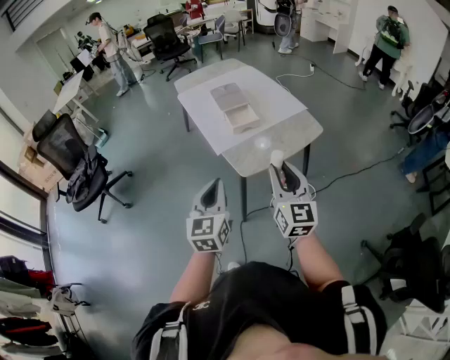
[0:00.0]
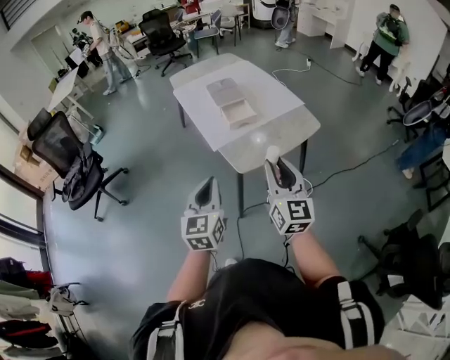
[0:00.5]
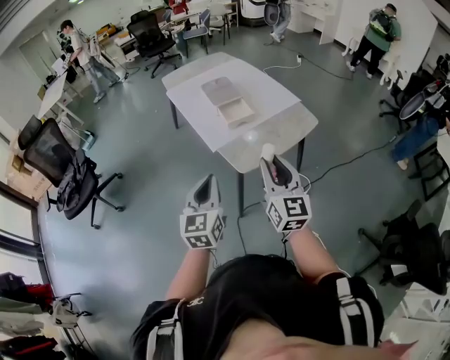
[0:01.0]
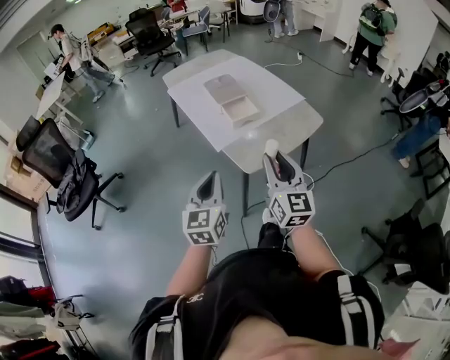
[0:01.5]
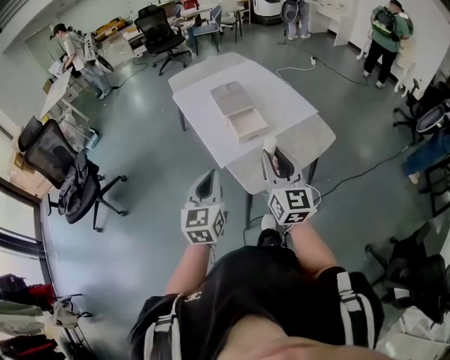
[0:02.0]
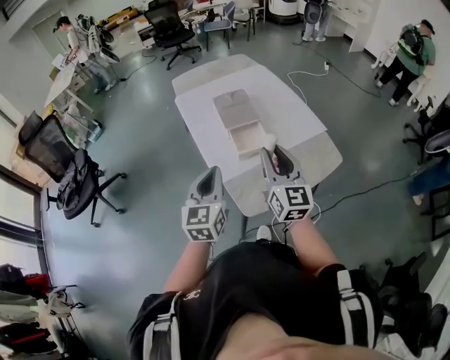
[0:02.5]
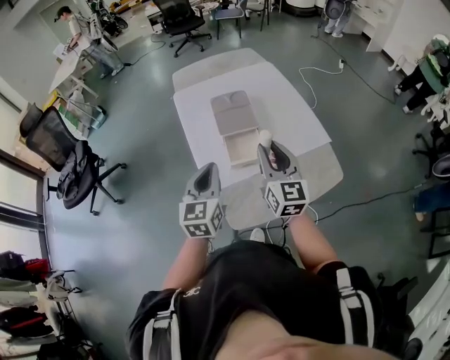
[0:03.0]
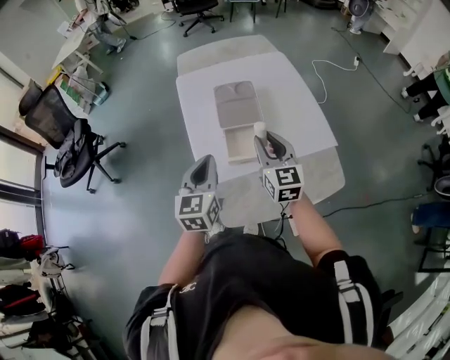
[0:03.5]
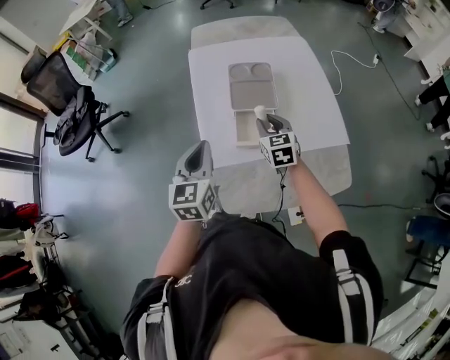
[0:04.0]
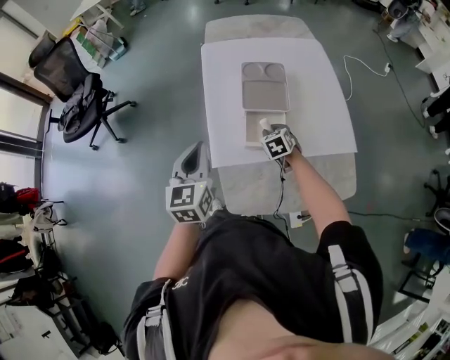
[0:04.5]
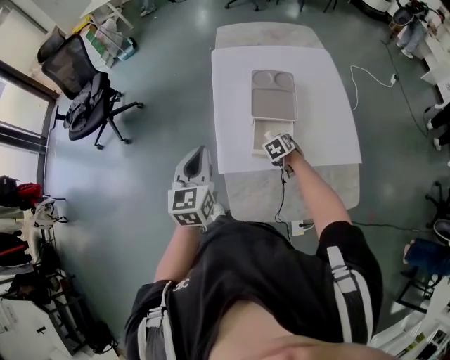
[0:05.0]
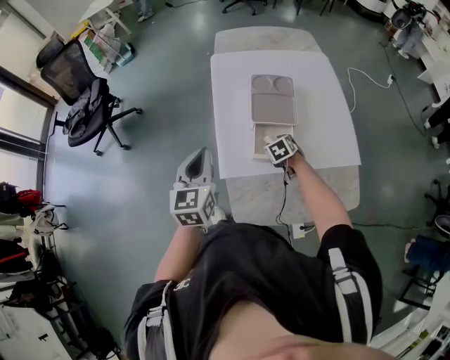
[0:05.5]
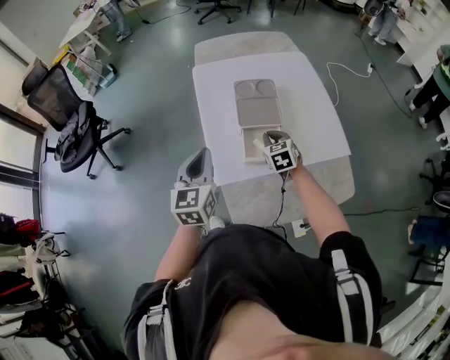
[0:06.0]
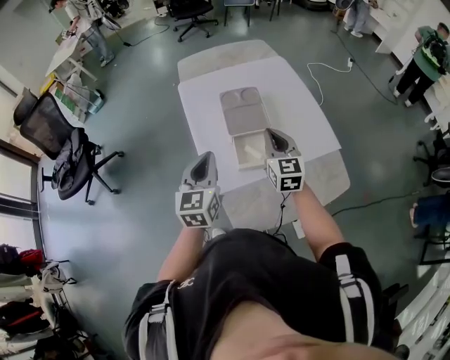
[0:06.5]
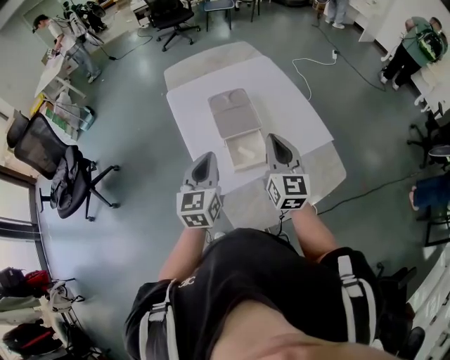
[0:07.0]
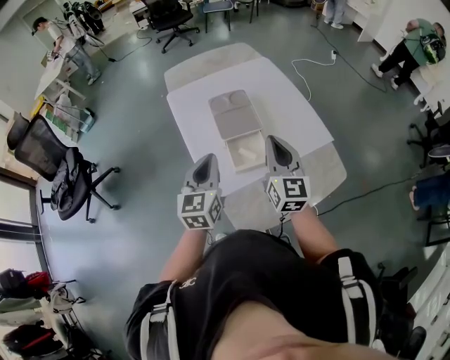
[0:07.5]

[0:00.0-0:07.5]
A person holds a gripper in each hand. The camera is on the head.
0:00.0 to 0:02.0: The two grippers go about 15 cm forward.
0:02.0 to 0:04.0: The right gripper shifts roughly 40 cm forward and downward, and tilts its fingers roughly 40 degrees downward; the left gripper is displaced forward by some 25 cm, and swivels approximately 20 degrees.
0:04.0 to 0:05.5: The right gripper is displaced downward by some 15 cm, and changes its angle by approximately 30 degrees, while the left gripper is displaced to the left by roughly 5 cm.
0:05.5 to 0:07.5: The right gripper heads upward, covering approximately 30 cm, angles its fingers upward, by approximately 60 degrees, and closes its fingers, while the left gripper is displaced to the right by about 10 cm, and rotates roughly 20 degrees.

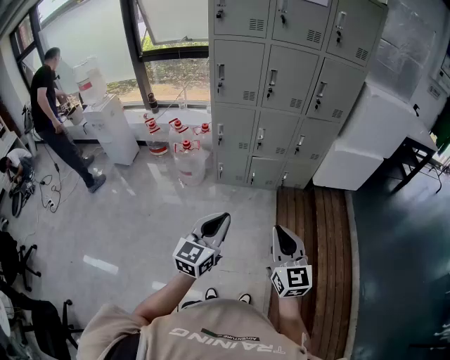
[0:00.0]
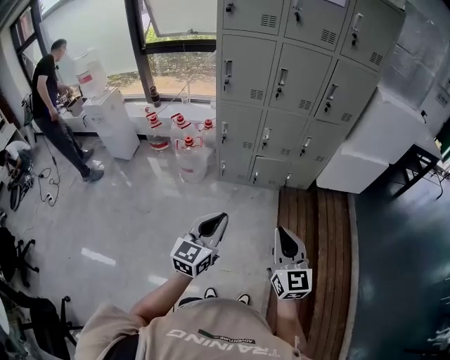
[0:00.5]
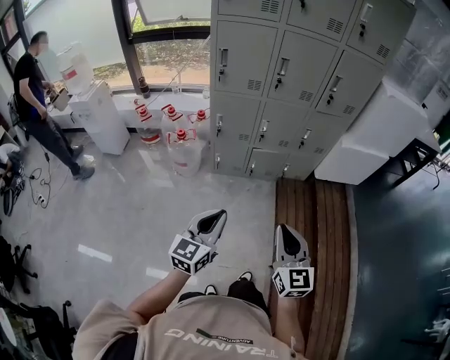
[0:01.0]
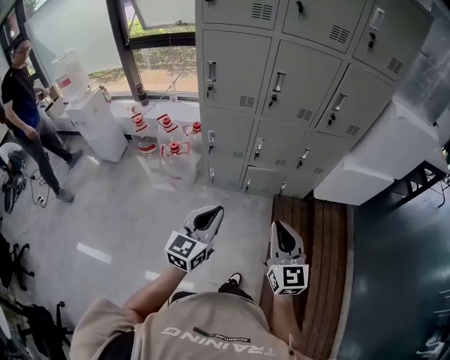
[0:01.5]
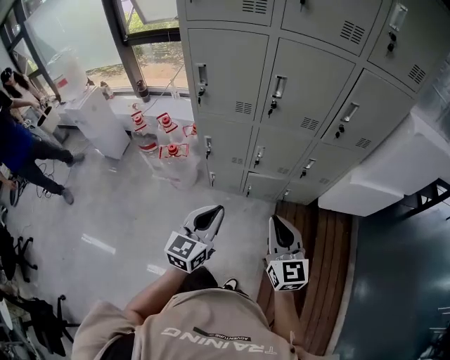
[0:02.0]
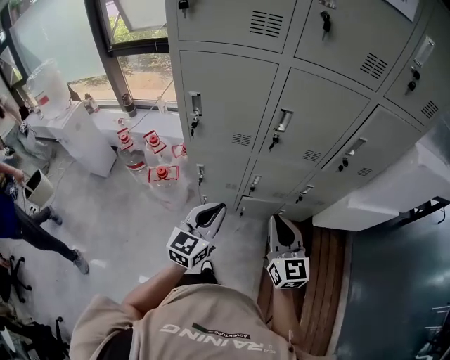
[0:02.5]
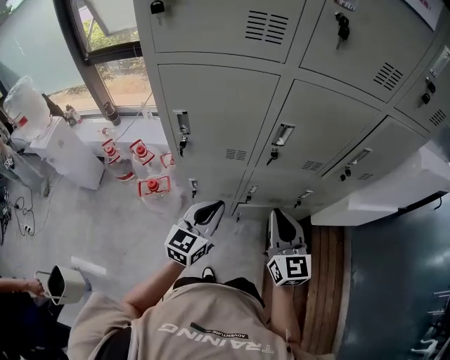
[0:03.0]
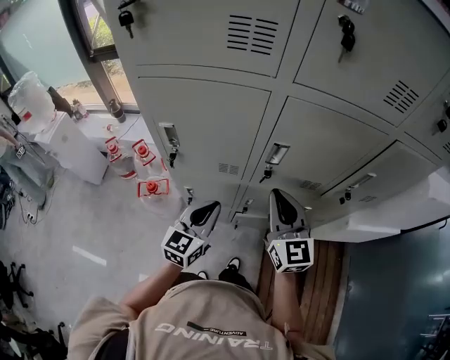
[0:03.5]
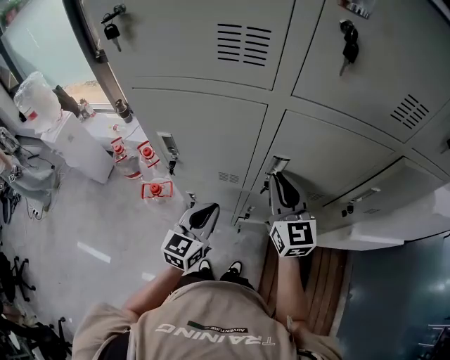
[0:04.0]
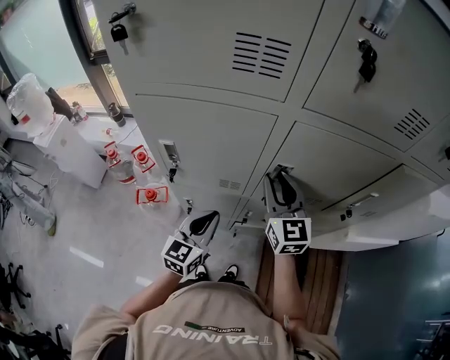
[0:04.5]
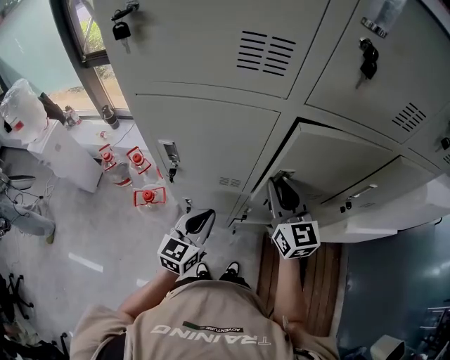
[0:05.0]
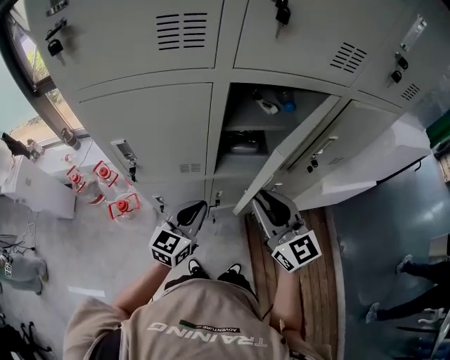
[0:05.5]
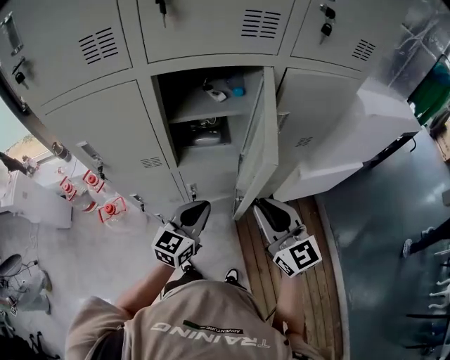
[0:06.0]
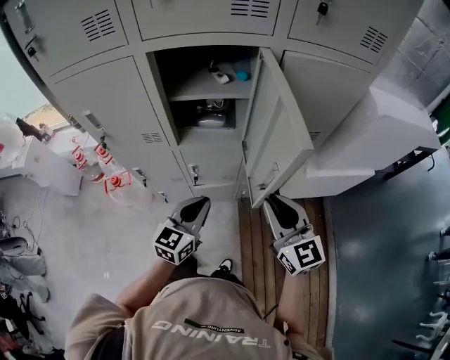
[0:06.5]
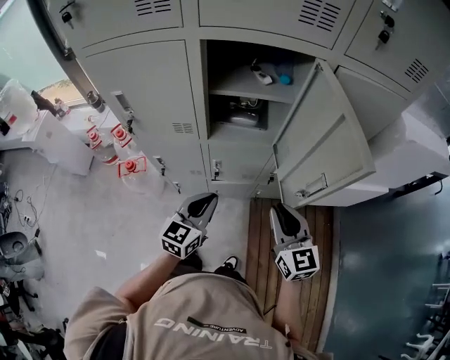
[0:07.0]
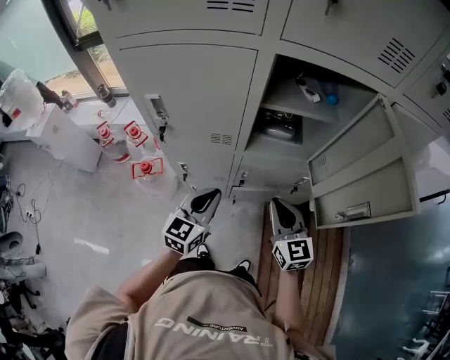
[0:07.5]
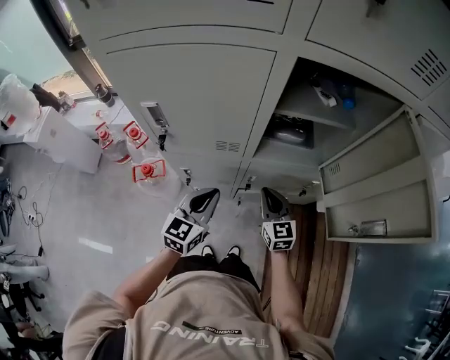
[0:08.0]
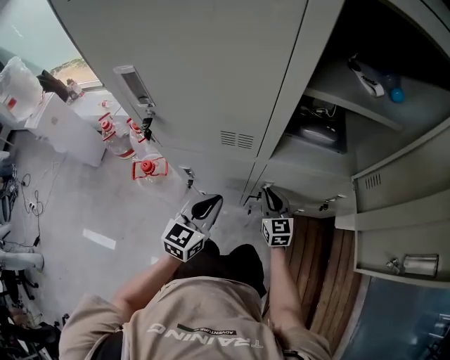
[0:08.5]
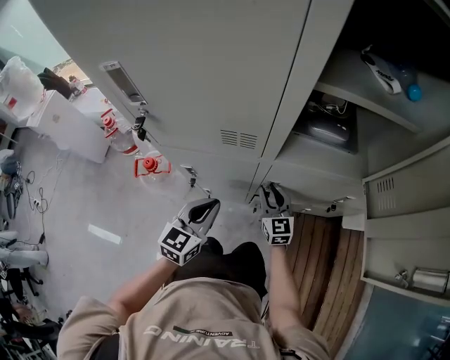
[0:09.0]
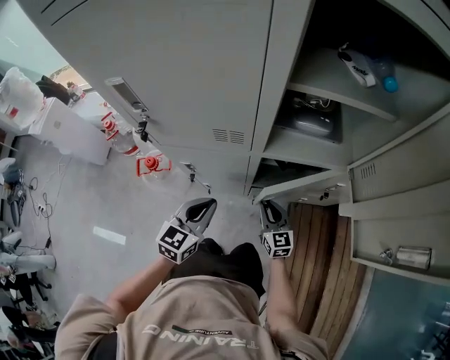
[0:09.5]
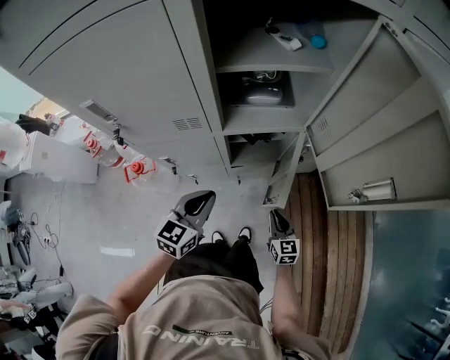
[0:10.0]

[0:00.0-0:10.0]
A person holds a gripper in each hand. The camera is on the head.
0:00.0 to 0:02.0: The two grippers go some 35 cm forward.
0:02.0 to 0:04.0: Both grippers move forward, some 35 cm.
0:04.0 to 0:06.0: The left gripper goes roughly 20 cm to the right, and changes its angle by some 20 degrees; the right gripper heads backward and to the right, covering roughly 25 cm.
0:06.0 to 0:08.0: The right gripper goes about 30 cm downward, to the left and forward. Meanwhile the left gripper goes some 20 cm to the left and downward.
0:08.0 to 0:10.0: The left gripper is displaced to the right and downward by roughly 10 cm. Meanwhile the right gripper goes approximately 25 cm downward, backward and to the right.

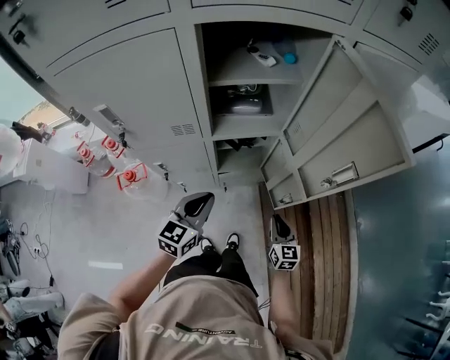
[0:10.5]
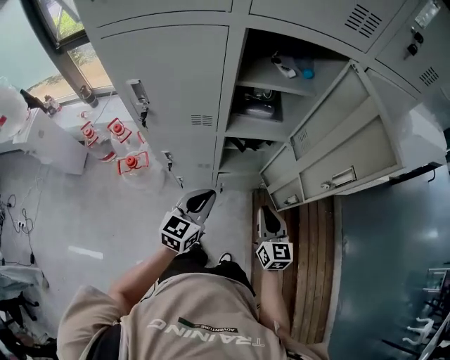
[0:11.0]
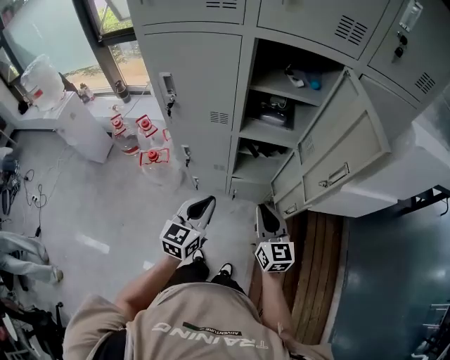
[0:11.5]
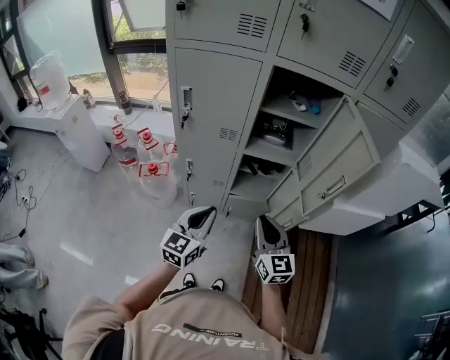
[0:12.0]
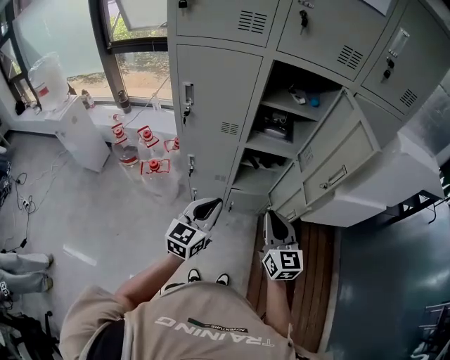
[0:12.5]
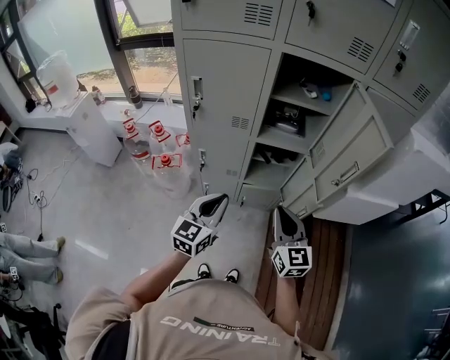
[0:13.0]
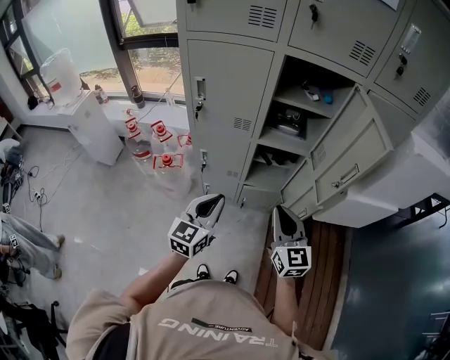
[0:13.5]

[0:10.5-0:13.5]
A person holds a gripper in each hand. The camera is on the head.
0:10.5 to 0:12.0: The left gripper moves backward and upward, roughly 15 cm, and rotates about 20 degrees. Meanwhile the right gripper goes roughly 25 cm upward and to the left, and swivels approximately 30 degrees.
0:12.0 to 0:13.5: The grippers make only small movements.

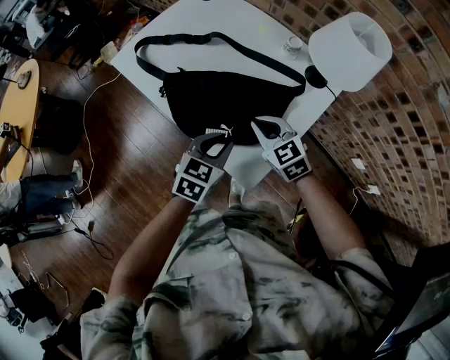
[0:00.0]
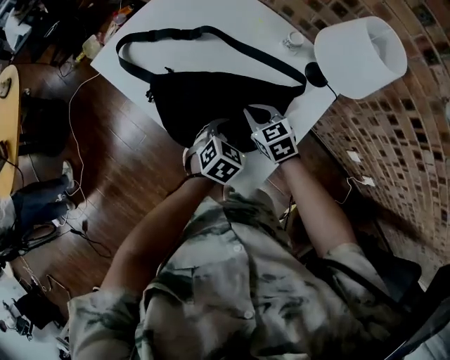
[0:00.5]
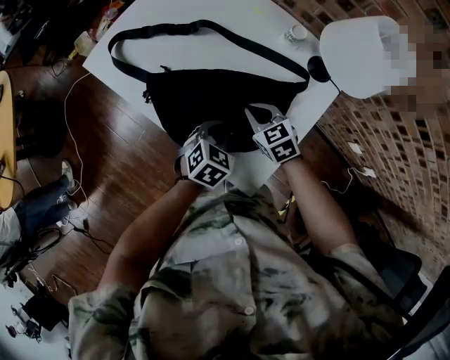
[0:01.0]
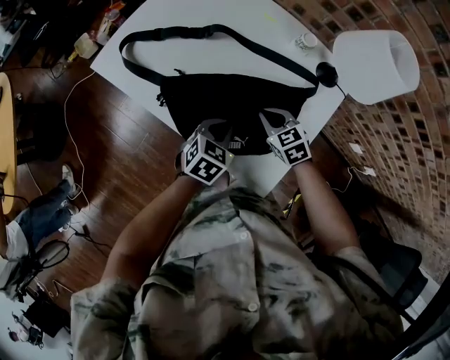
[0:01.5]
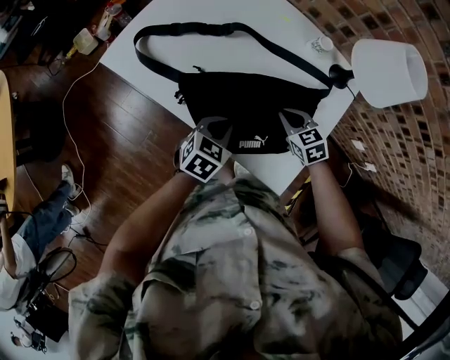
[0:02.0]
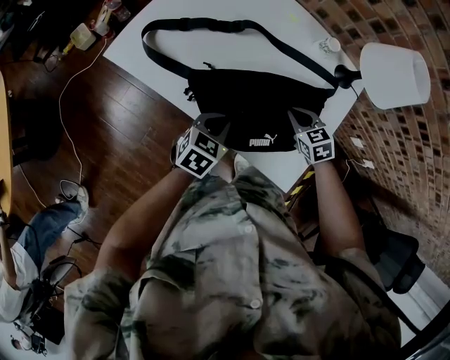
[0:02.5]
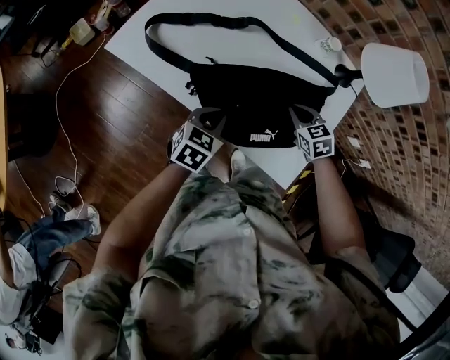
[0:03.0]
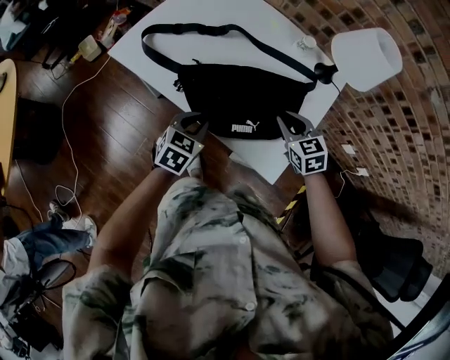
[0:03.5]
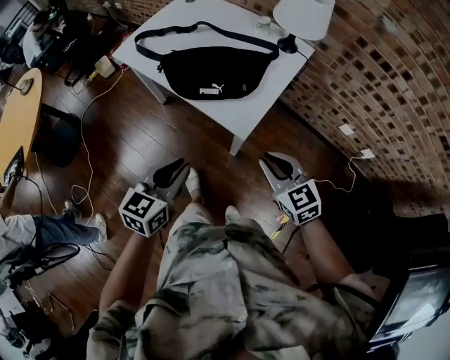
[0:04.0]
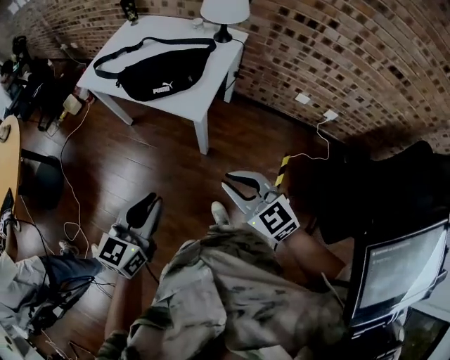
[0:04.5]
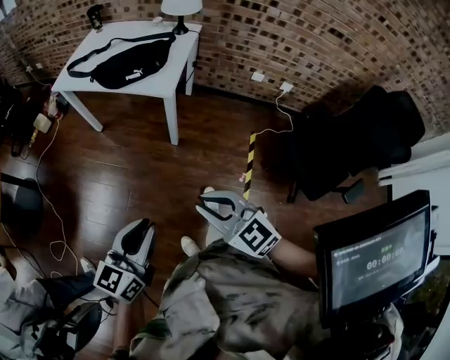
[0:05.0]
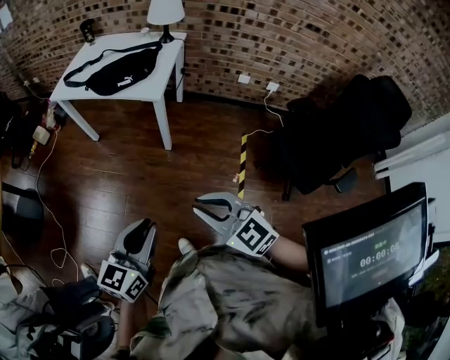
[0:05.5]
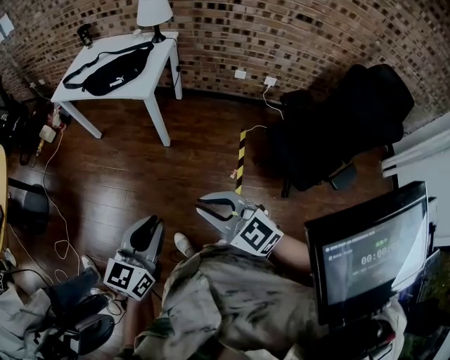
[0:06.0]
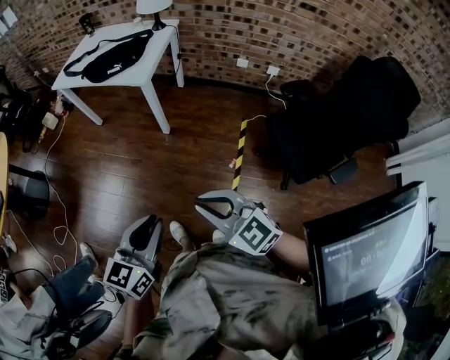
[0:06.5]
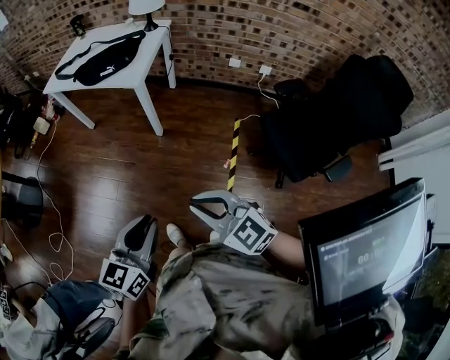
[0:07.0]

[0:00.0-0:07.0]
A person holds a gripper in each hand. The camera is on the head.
0:00.0 to 0:02.0: The left gripper is displaced to the left, forward and downward by approximately 15 cm, while the right gripper is displaced downward and forward by about 15 cm, and turns by roughly 20 degrees.
0:02.0 to 0:03.5: The left gripper goes roughly 5 cm backward, while the right gripper moves upward and backward, roughly 10 cm.
0:03.5 to 0:05.0: Both grippers are carried backward, about 70 cm. The right gripper changes its angle by approximately 20 degrees. Meanwhile the left gripper rotates some 30 degrees.
0:05.0 to 0:07.0: The right gripper goes some 20 cm backward and to the right, while the left gripper shifts roughly 20 cm to the right and backward.
